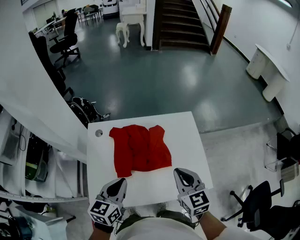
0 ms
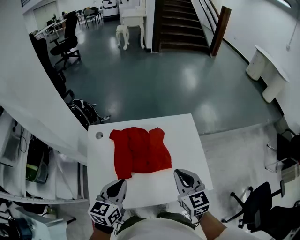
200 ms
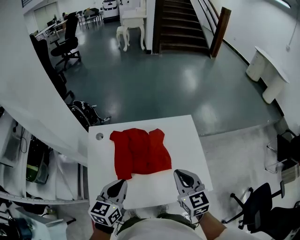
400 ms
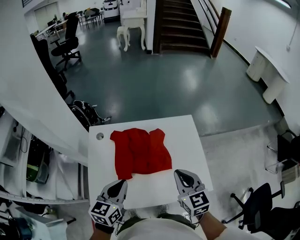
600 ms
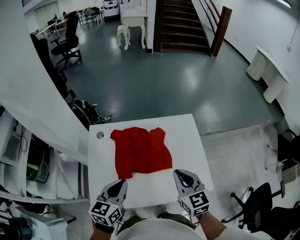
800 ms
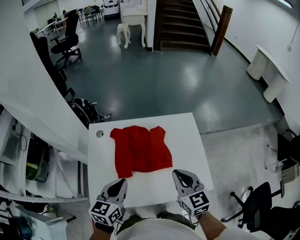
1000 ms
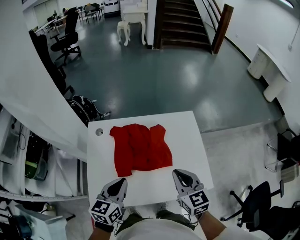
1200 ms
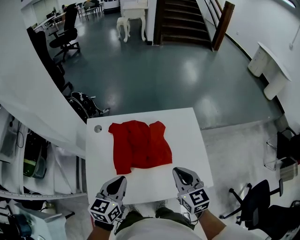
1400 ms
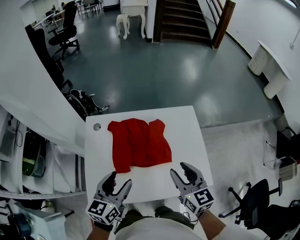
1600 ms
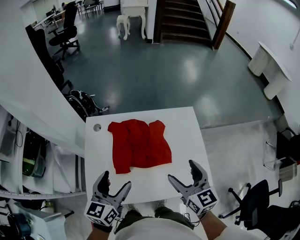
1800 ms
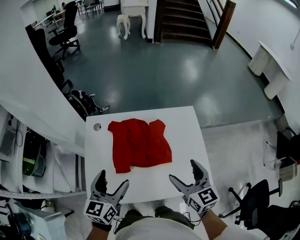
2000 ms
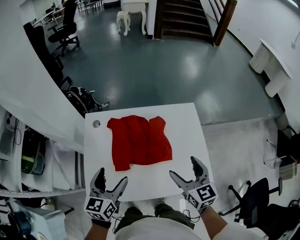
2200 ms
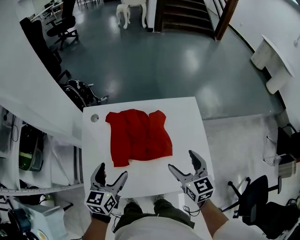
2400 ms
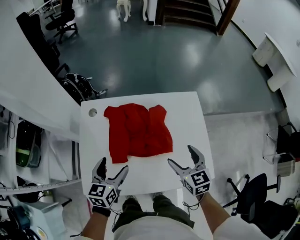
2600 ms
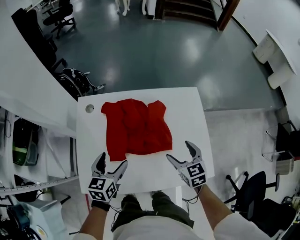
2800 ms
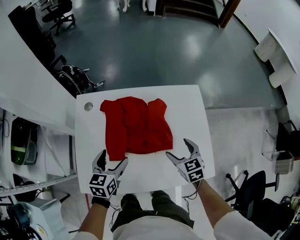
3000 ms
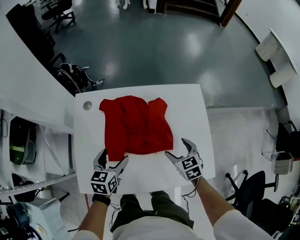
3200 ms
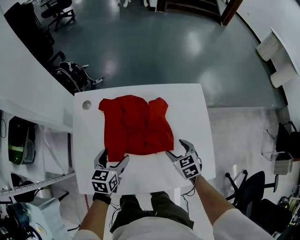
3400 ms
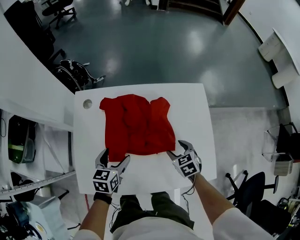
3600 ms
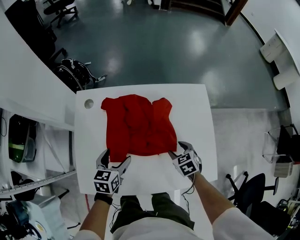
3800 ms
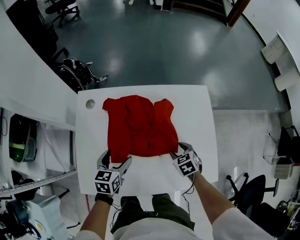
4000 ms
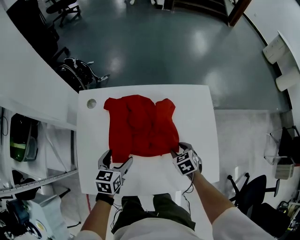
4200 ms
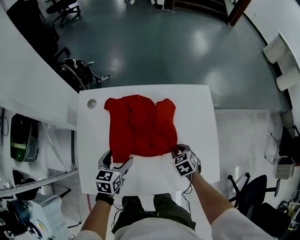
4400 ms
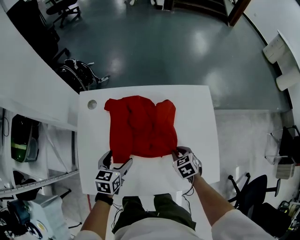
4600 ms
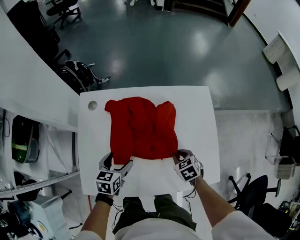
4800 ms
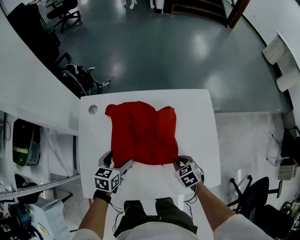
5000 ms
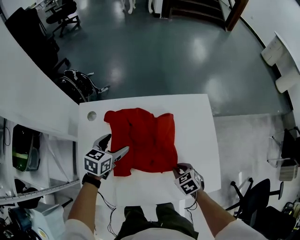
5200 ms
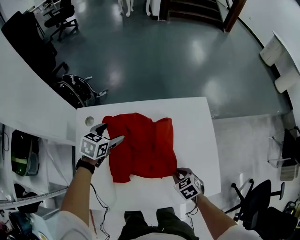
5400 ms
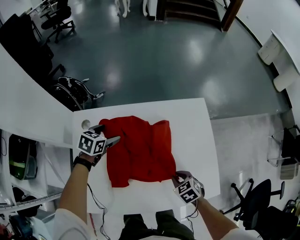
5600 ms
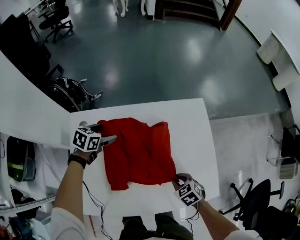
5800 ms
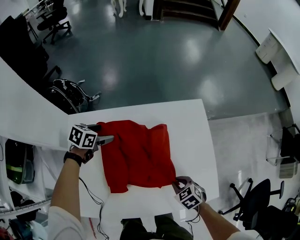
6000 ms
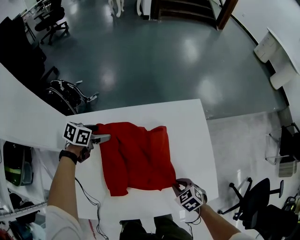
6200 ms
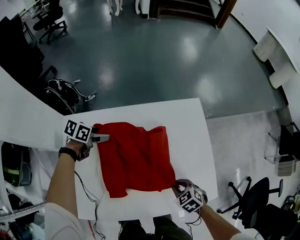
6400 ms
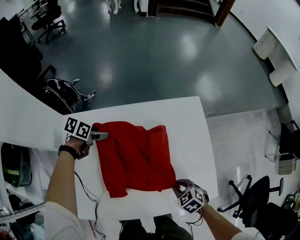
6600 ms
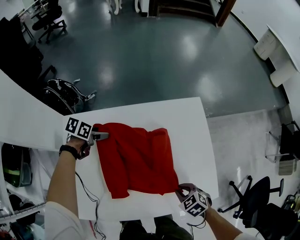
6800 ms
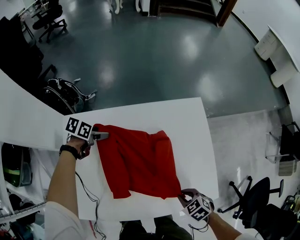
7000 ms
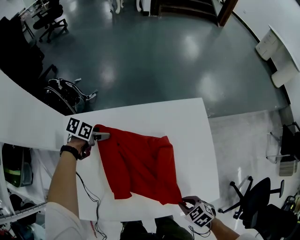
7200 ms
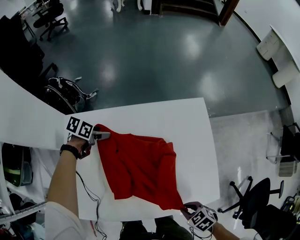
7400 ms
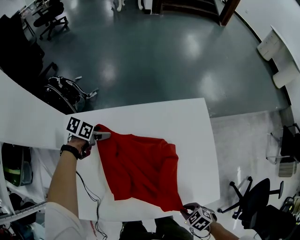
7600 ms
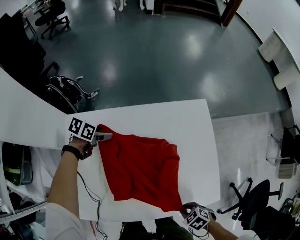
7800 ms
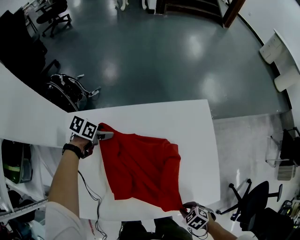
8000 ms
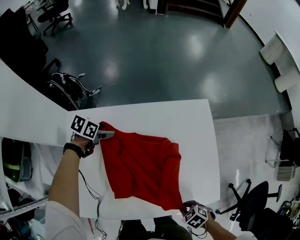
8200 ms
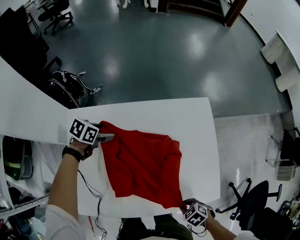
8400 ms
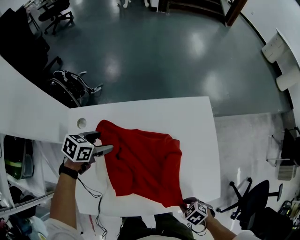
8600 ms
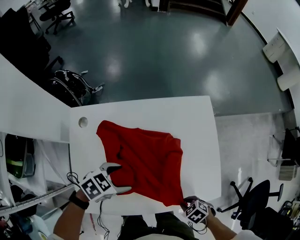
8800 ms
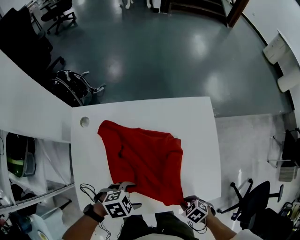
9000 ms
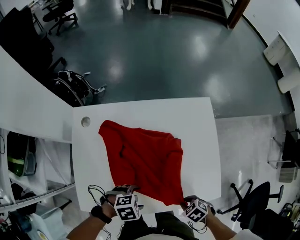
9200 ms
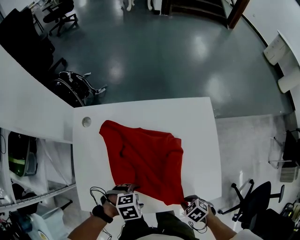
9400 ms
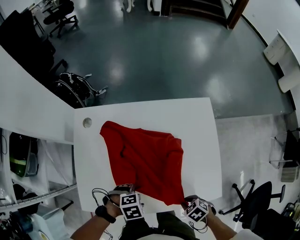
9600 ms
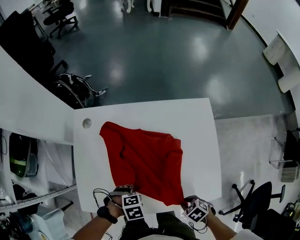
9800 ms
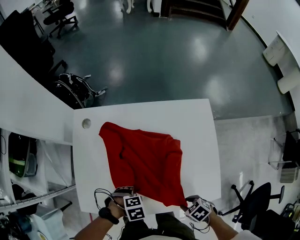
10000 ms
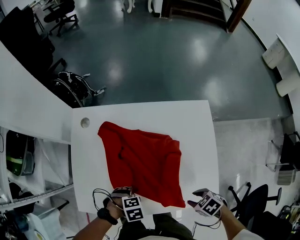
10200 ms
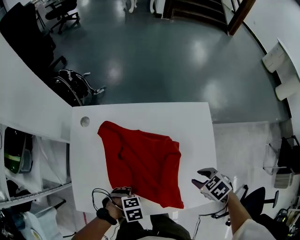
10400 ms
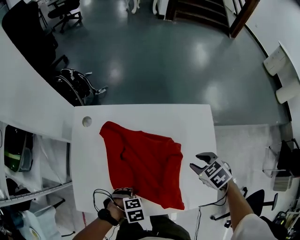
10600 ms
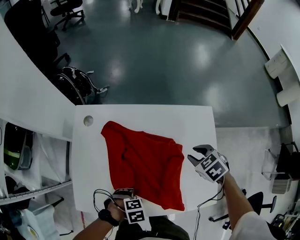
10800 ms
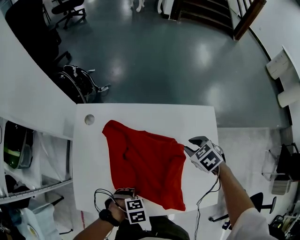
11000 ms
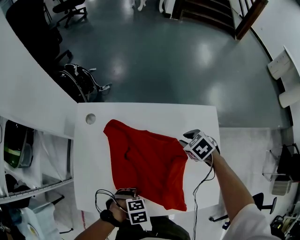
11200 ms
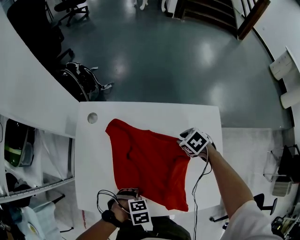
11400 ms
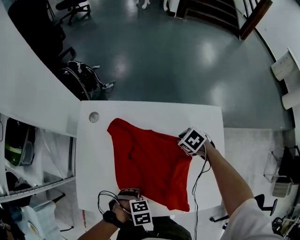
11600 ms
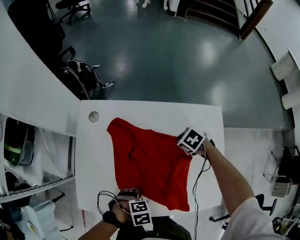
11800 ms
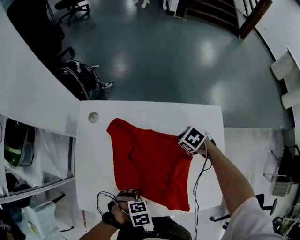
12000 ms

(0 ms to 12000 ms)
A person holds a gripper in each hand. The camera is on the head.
0 ms - 1600 ms: The right gripper opens up, while the left gripper opens.
1600 ms - 3000 ms: The right gripper heads downward, covering approximately 20 cm, turns by some 30 degrees, and opens up. Meanwhile the left gripper goes roughly 15 cm downward and forward, and opens up.
3000 ms - 4400 ms: The left gripper shifts approximately 5 cm downward. Meanwhile the right gripper moves downward, roughly 10 cm, changes its angle by roughly 20 degrees, and closes up.
4400 ms - 6000 ms: The left gripper travels forward by about 20 cm, and swivels roughly 30 degrees, while the right gripper goes about 5 cm backward.
6000 ms - 7600 ms: The right gripper shifts by roughly 15 cm, and rotates about 20 degrees.
7600 ms - 9000 ms: The left gripper moves some 35 cm, and rolls clockwise, seen from behind, by about 40 degrees.
9000 ms - 10400 ms: The left gripper is displaced downward by approximately 5 cm; the right gripper ends up roughly 20 cm from where it was.
10400 ms - 12000 ms: The right gripper shifts by roughly 25 cm, and closes up.

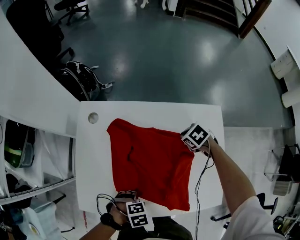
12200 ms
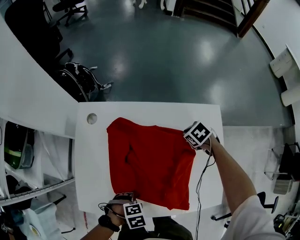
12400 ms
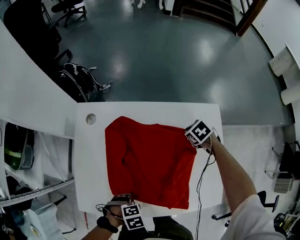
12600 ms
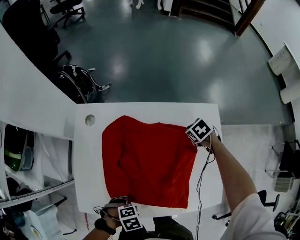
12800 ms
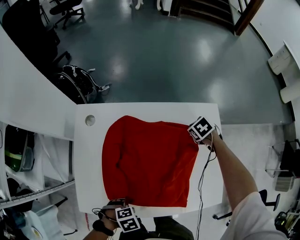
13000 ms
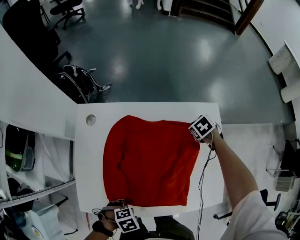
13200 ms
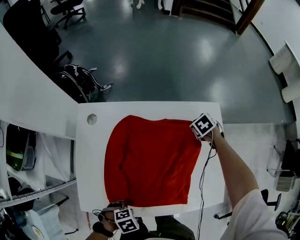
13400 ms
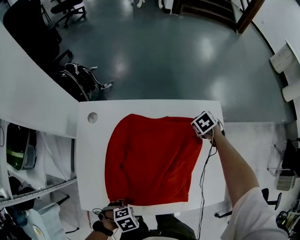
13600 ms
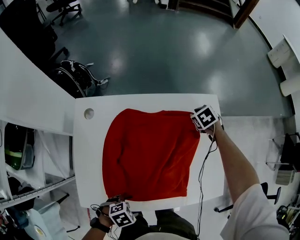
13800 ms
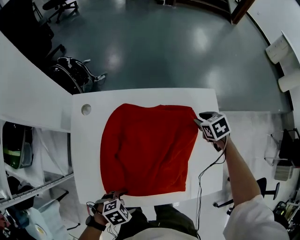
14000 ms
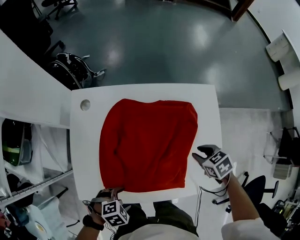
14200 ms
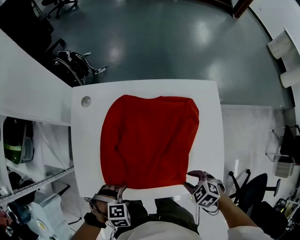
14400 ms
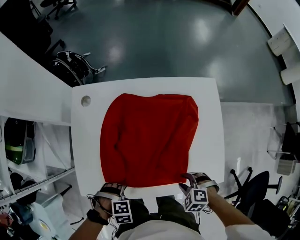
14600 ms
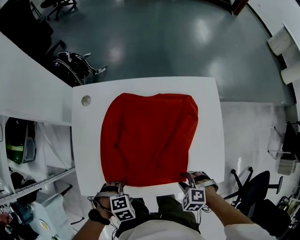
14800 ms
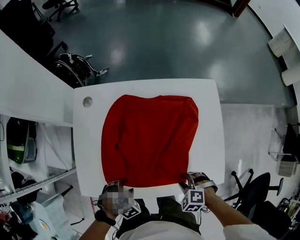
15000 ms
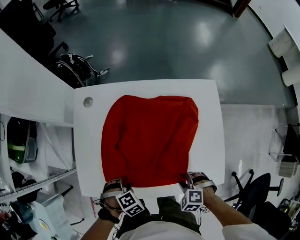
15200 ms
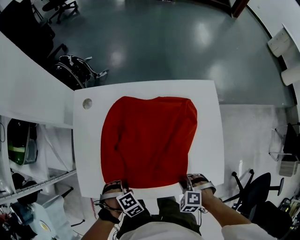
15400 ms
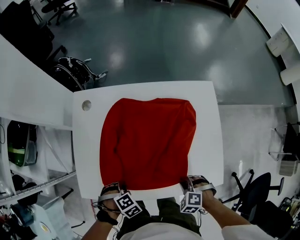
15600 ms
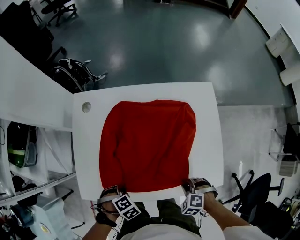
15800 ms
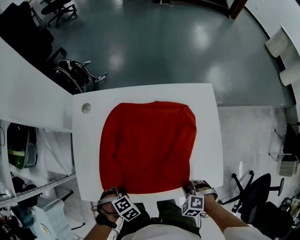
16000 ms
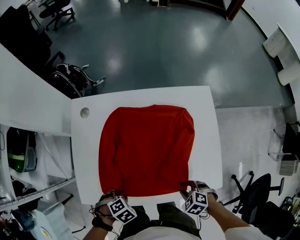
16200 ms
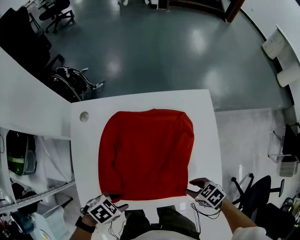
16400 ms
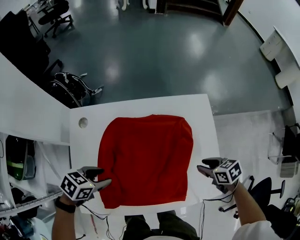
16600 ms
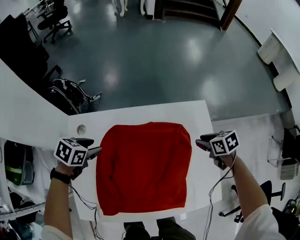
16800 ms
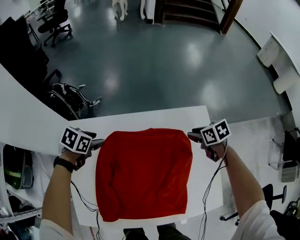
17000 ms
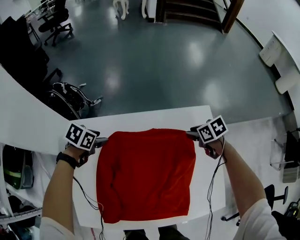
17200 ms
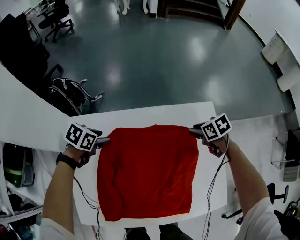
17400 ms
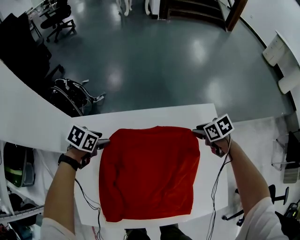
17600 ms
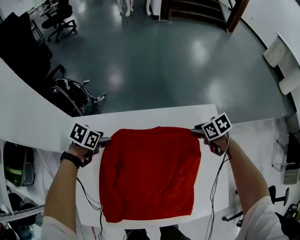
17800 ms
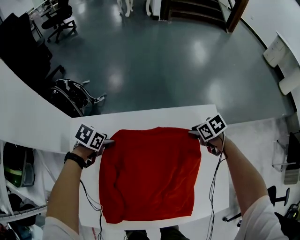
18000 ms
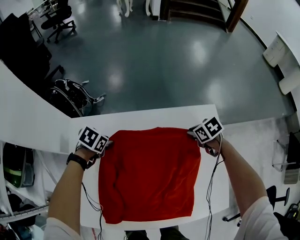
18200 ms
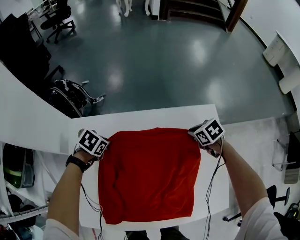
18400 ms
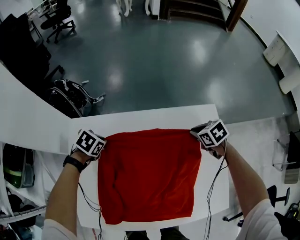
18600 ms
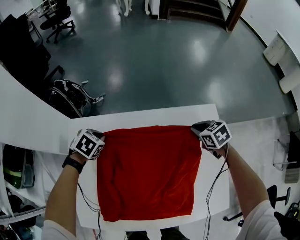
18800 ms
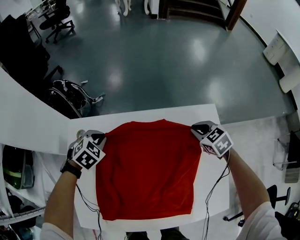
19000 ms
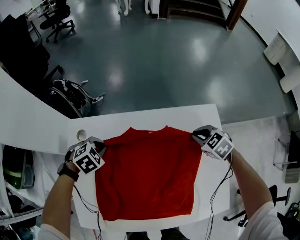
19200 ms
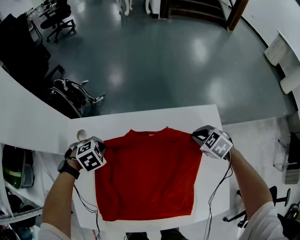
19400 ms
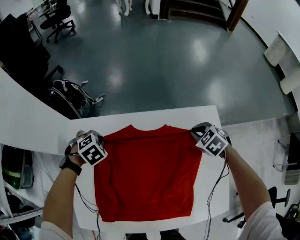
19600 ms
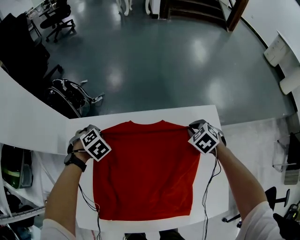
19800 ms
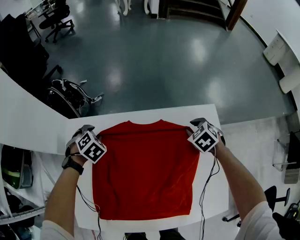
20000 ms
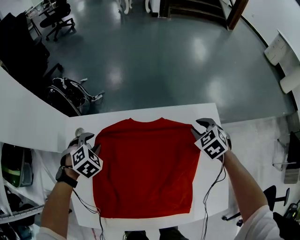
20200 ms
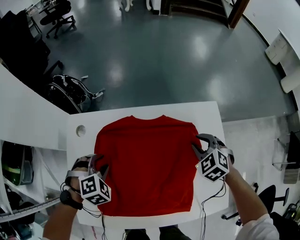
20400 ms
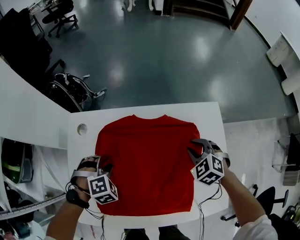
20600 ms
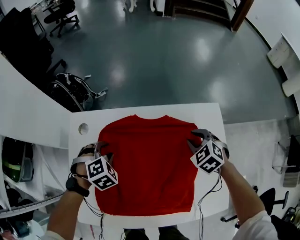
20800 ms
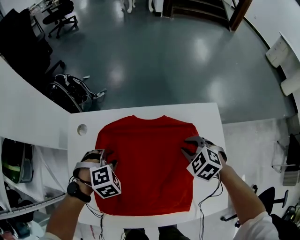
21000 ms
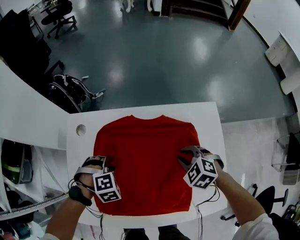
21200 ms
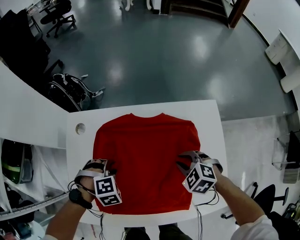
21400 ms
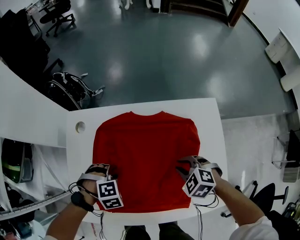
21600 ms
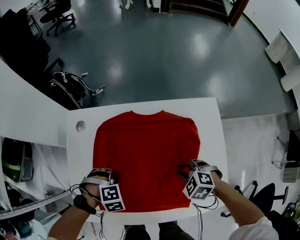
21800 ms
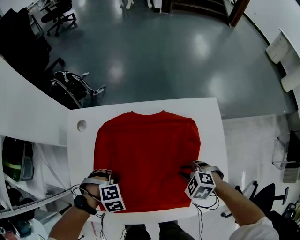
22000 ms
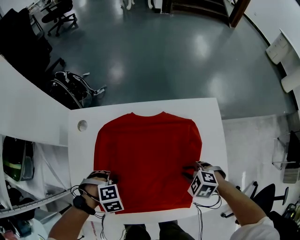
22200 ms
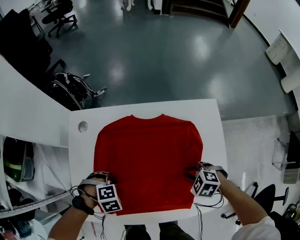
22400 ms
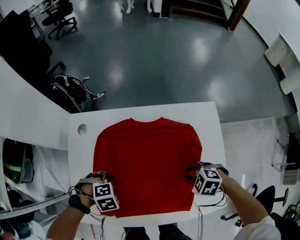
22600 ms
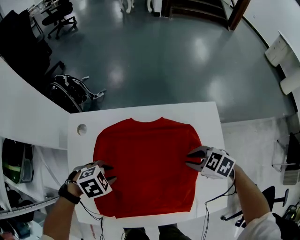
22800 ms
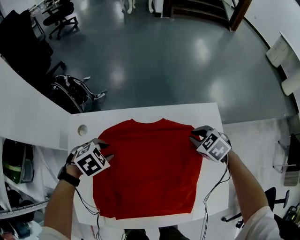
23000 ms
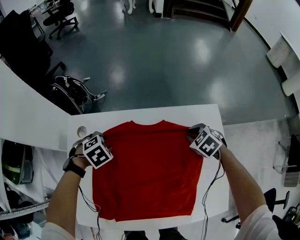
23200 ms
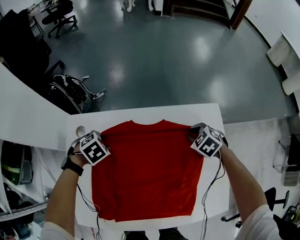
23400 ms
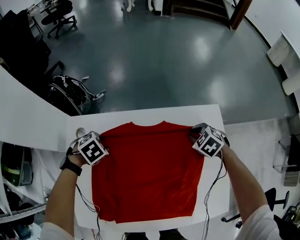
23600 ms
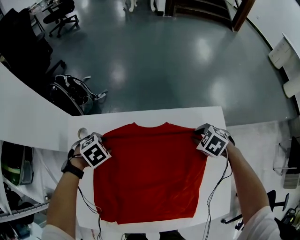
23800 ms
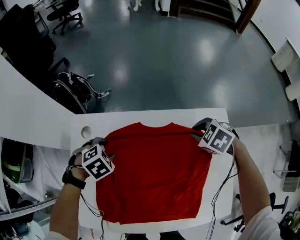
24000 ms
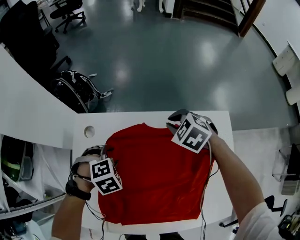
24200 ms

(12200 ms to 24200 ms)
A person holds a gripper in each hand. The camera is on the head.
12200 ms - 13800 ms: The right gripper moves approximately 10 cm, and turns by about 20 degrees, while the left gripper changes place by approximately 5 cm.
13800 ms - 15200 ms: The right gripper shifts by about 40 cm, and rotates around the line of its fingers by some 40 degrees, counterclockwise from behind. Meanwhile the left gripper ends up roughly 5 cm from where it was, rotates approximately 30 degrees, and closes up.
15200 ms - 16600 ms: The left gripper moves about 20 cm, and swivels about 50 degrees; the right gripper changes place by some 20 cm, and twists roughly 60 degrees clockwise, seen from behind.
16600 ms - 18200 ms: The right gripper moves roughly 25 cm, while the left gripper moves approximately 25 cm.
18200 ms - 19800 ms: The left gripper changes place by roughly 5 cm, and swivels approximately 40 degrees, while the right gripper turns by roughly 30 degrees.
19800 ms - 21200 ms: The left gripper swings forward and backward, about 15 cm each way, with 2 reversals, and turns by some 30 degrees; the right gripper goes about 15 cm backward and to the left.
21200 ms - 22600 ms: The left gripper shifts by approximately 10 cm; the right gripper moves about 10 cm.
22600 ms - 24200 ms: The left gripper moves about 15 cm. The right gripper moves up and down over some 5 cm, changing direction 2 times.
